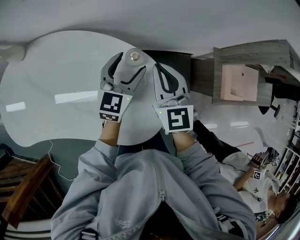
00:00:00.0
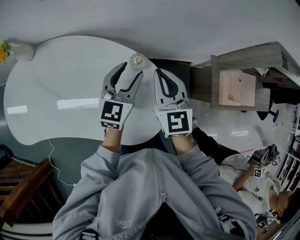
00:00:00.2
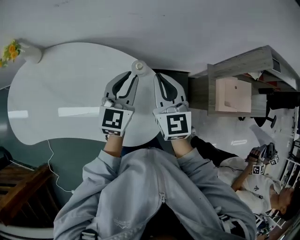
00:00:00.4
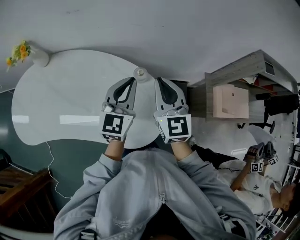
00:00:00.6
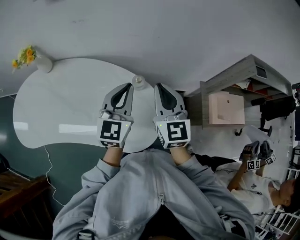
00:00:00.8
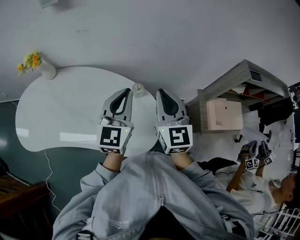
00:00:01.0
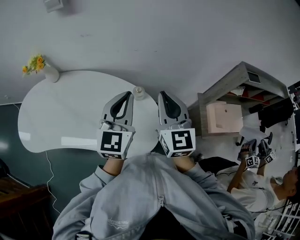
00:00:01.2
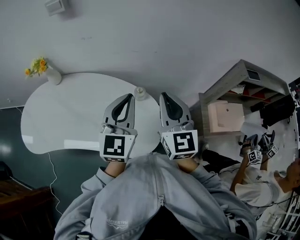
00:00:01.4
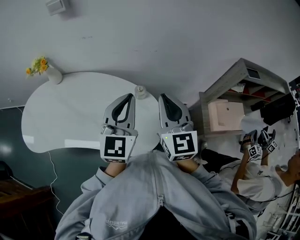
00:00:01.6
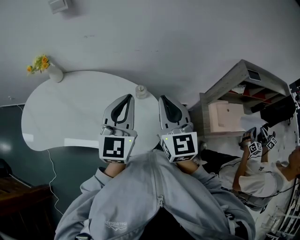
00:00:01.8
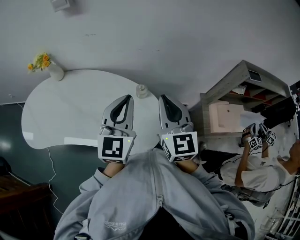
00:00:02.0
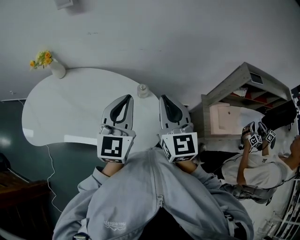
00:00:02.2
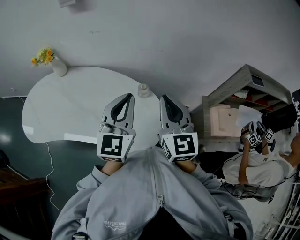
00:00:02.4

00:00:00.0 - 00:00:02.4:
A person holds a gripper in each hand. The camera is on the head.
00:00:00.0 - 00:00:01.2: The grippers both shift upward and backward by some 25 cm. The left gripper changes its angle by roughly 20 degrees, and closes.
00:00:01.2 - 00:00:02.4: There are only small adjustments of the grippers.

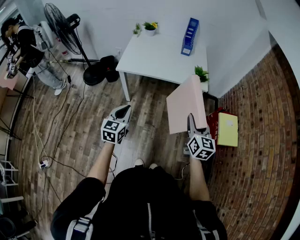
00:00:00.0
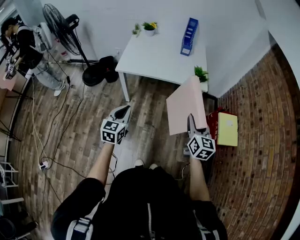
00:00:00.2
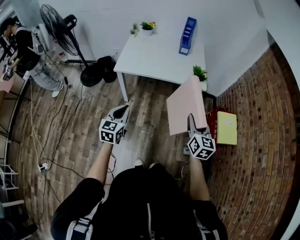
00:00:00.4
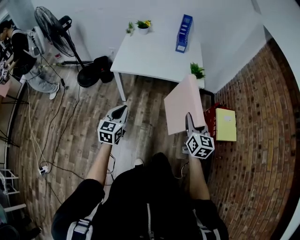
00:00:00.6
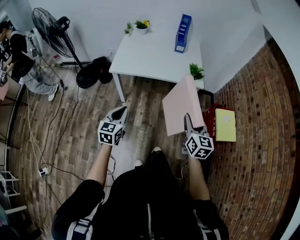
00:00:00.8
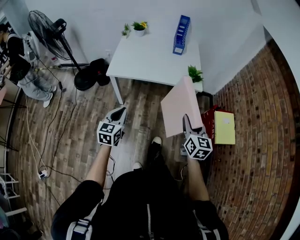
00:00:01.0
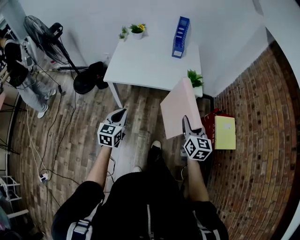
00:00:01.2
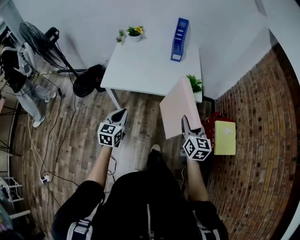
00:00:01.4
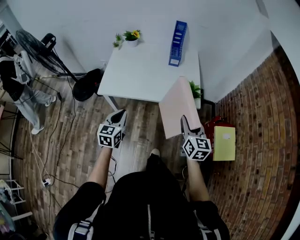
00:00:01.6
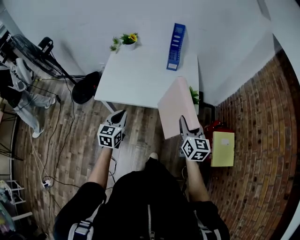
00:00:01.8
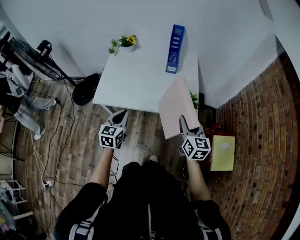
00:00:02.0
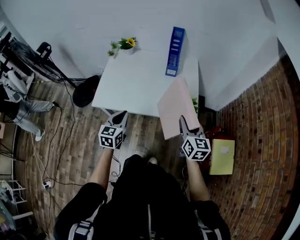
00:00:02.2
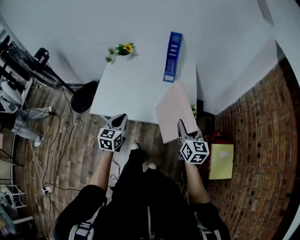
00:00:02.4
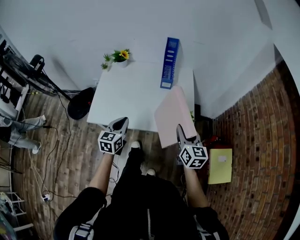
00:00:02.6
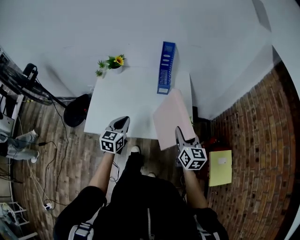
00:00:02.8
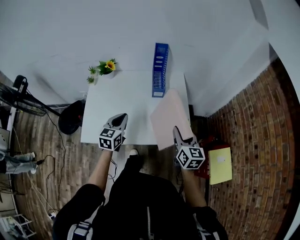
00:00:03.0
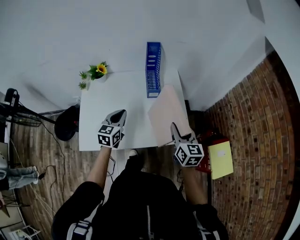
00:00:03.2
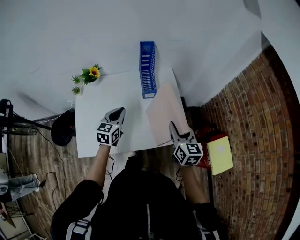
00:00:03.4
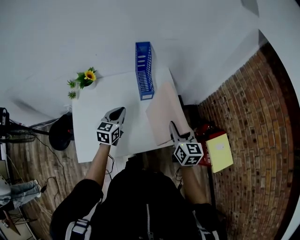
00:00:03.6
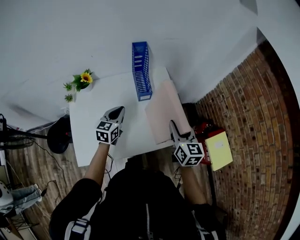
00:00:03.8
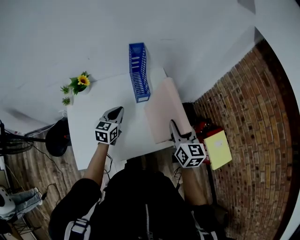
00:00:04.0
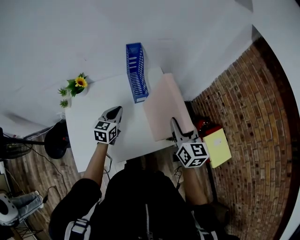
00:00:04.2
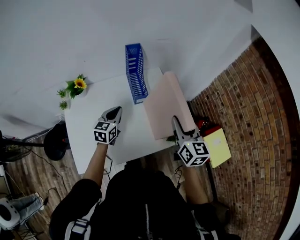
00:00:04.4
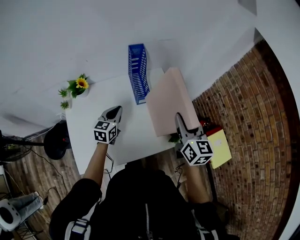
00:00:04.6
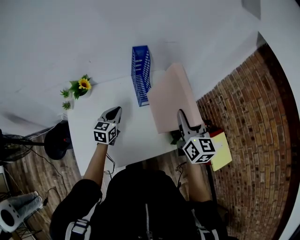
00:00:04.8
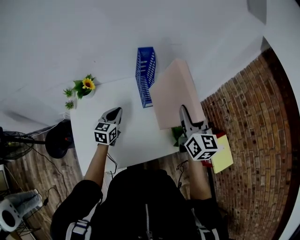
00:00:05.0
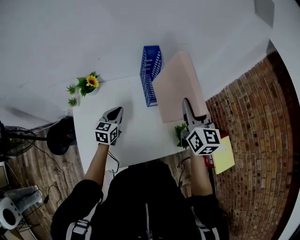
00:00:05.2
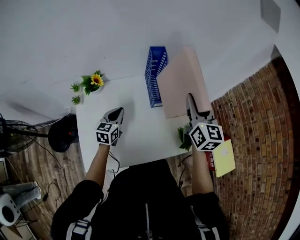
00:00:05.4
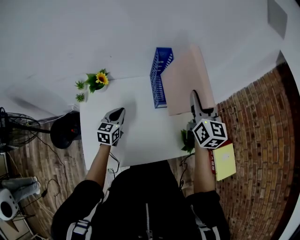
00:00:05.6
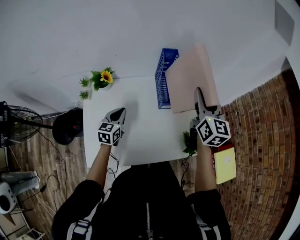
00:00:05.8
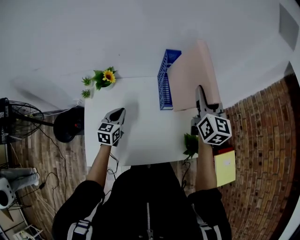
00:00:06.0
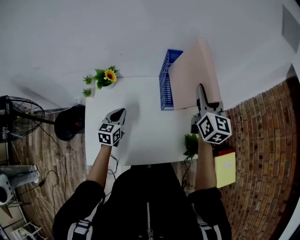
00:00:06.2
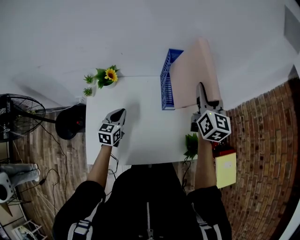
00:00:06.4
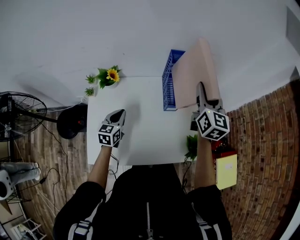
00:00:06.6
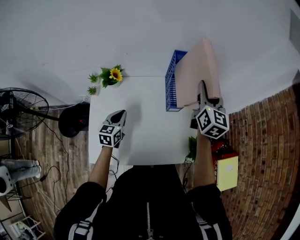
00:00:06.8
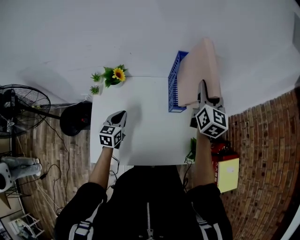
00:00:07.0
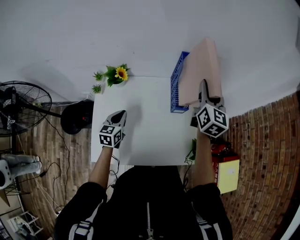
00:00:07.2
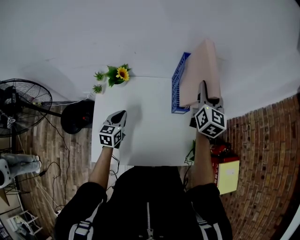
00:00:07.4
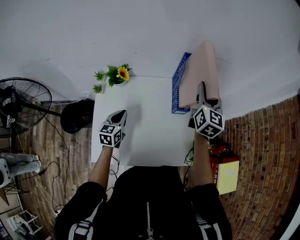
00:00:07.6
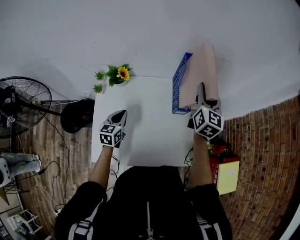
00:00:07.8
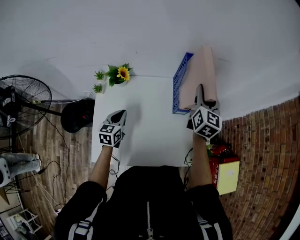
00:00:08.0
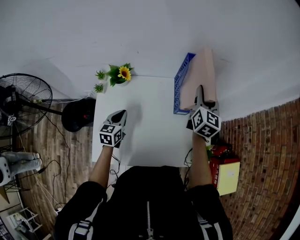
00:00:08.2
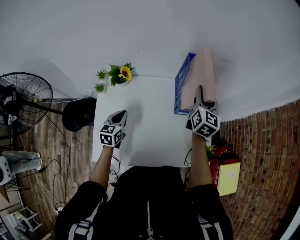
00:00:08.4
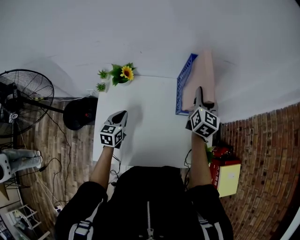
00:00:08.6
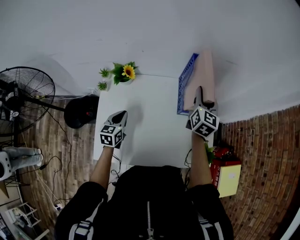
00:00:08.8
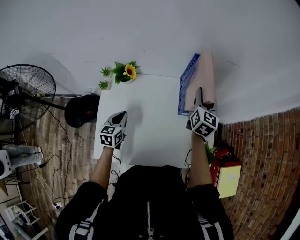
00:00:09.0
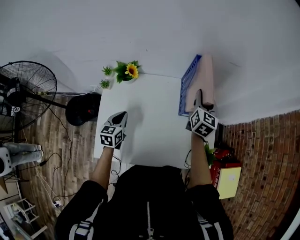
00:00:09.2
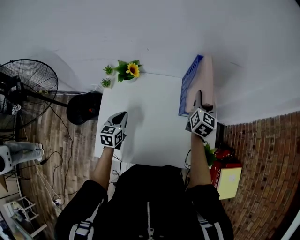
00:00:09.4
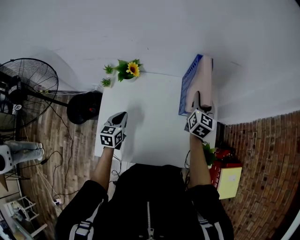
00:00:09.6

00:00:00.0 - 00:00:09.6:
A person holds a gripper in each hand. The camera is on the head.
00:00:00.0 - 00:00:01.6: Both grippers travel together forward, approximately 20 cm.
00:00:01.6 - 00:00:03.2: The two grippers go some 30 cm forward.
00:00:03.2 - 00:00:04.8: The right gripper heads upward and forward, covering about 15 cm, while the left gripper travels forward by approximately 10 cm.
00:00:04.8 - 00:00:06.4: The left gripper heads to the left, covering roughly 10 cm. Meanwhile the right gripper goes roughly 15 cm forward and to the left.
00:00:06.4 - 00:00:08.0: The left gripper shifts roughly 5 cm to the left. The right gripper travels downward by some 5 cm.
00:00:08.0 - 00:00:09.6: The right gripper moves downward, about 10 cm.

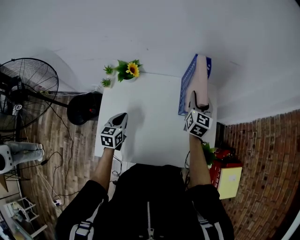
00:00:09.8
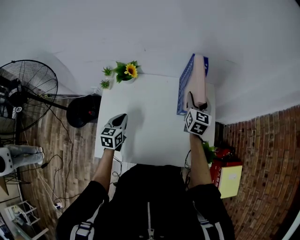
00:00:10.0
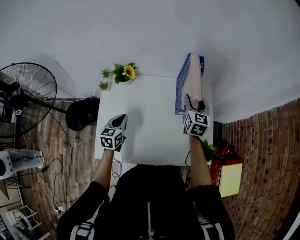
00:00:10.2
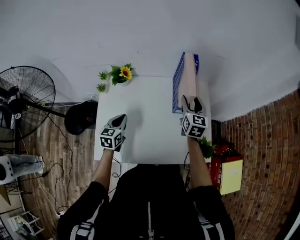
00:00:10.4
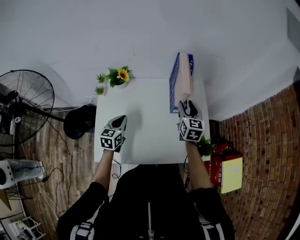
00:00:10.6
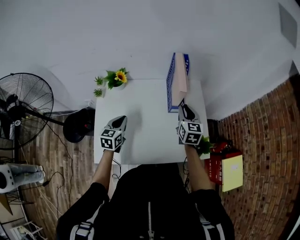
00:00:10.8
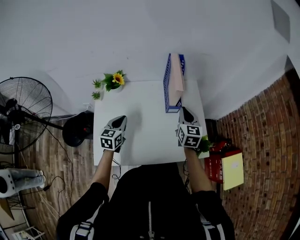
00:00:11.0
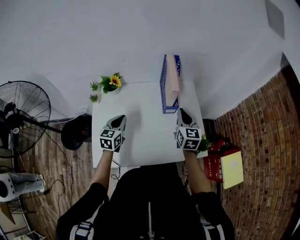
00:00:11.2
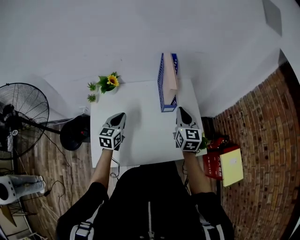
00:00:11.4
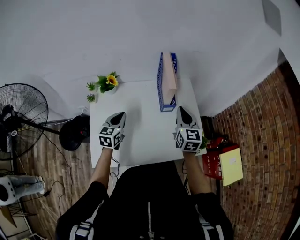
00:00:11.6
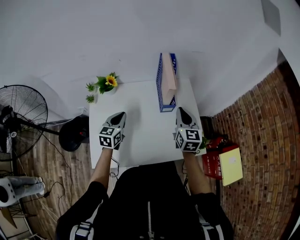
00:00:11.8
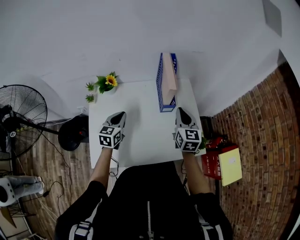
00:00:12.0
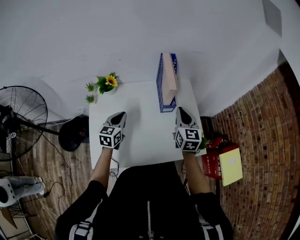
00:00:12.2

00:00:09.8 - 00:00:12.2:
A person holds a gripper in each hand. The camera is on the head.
00:00:09.8 - 00:00:11.0: The right gripper moves backward, about 10 cm, and closes. Meanwhile the left gripper travels to the right by approximately 5 cm.
00:00:11.0 - 00:00:12.2: The grippers stay close to where they were, moving slightly.

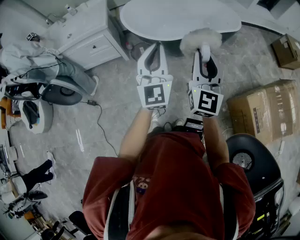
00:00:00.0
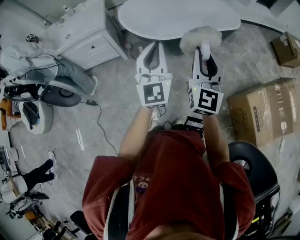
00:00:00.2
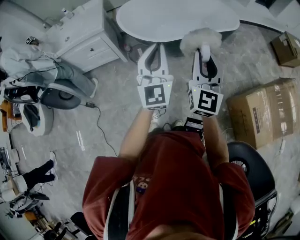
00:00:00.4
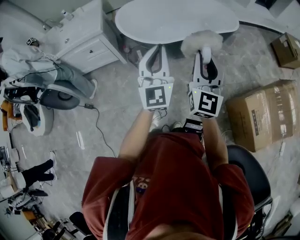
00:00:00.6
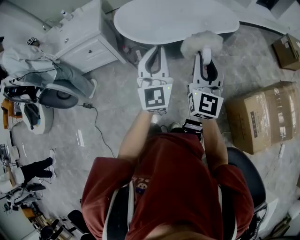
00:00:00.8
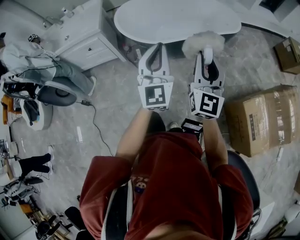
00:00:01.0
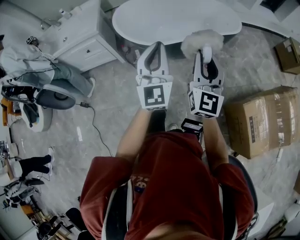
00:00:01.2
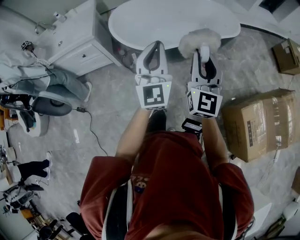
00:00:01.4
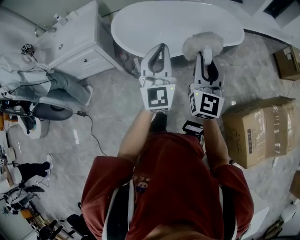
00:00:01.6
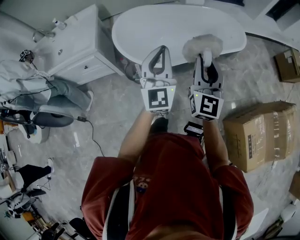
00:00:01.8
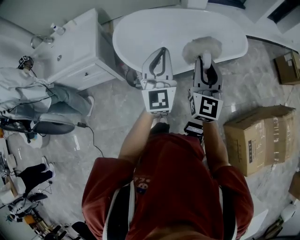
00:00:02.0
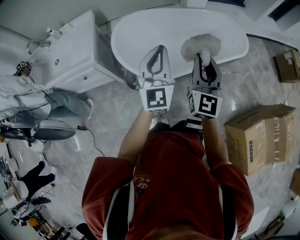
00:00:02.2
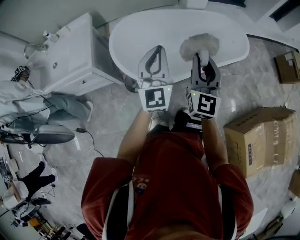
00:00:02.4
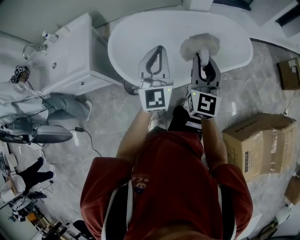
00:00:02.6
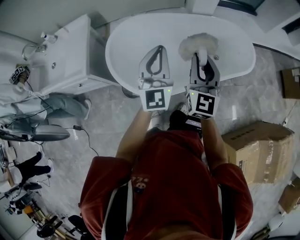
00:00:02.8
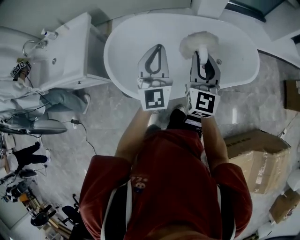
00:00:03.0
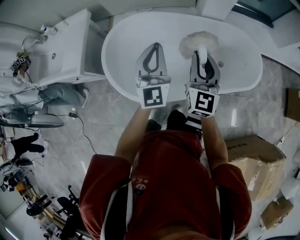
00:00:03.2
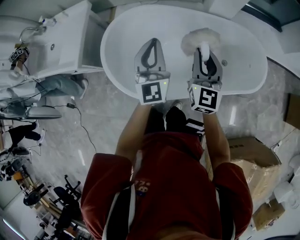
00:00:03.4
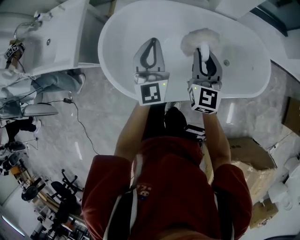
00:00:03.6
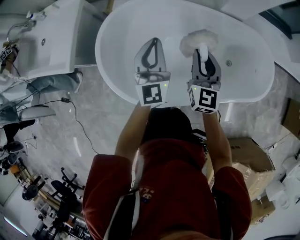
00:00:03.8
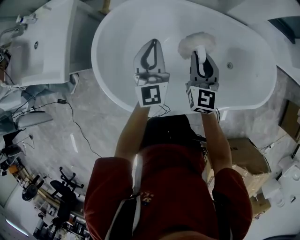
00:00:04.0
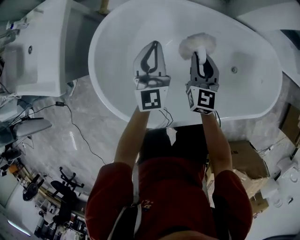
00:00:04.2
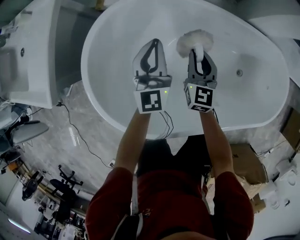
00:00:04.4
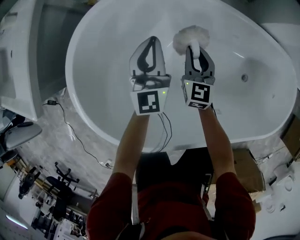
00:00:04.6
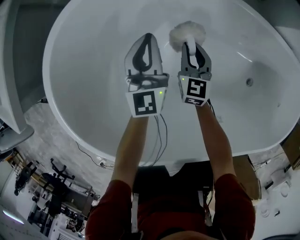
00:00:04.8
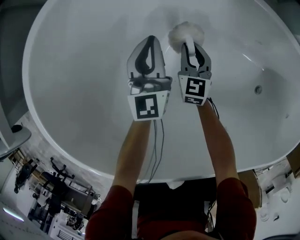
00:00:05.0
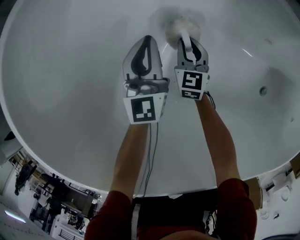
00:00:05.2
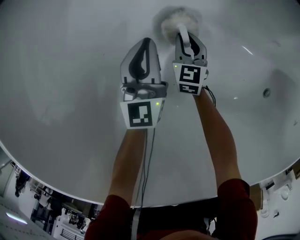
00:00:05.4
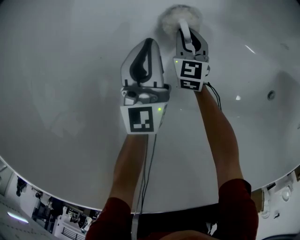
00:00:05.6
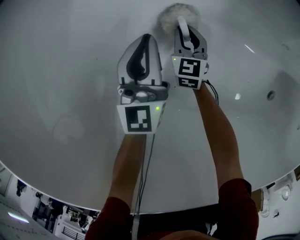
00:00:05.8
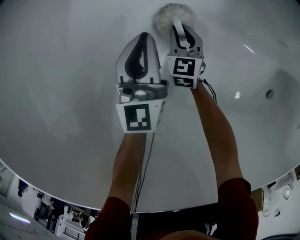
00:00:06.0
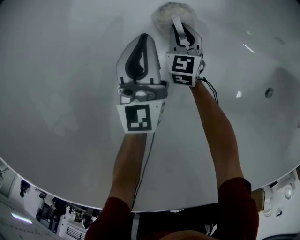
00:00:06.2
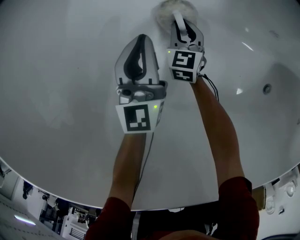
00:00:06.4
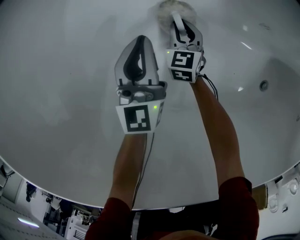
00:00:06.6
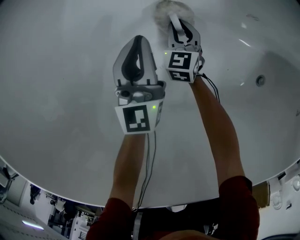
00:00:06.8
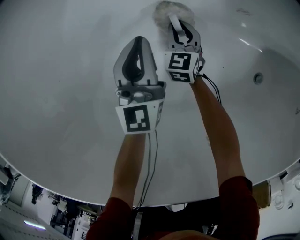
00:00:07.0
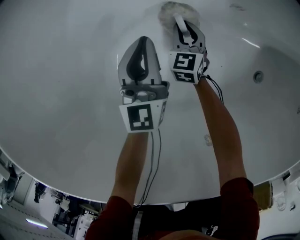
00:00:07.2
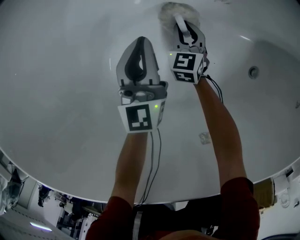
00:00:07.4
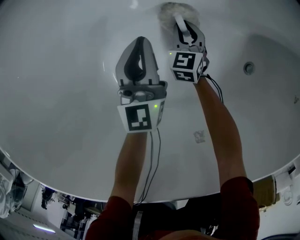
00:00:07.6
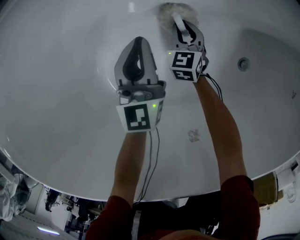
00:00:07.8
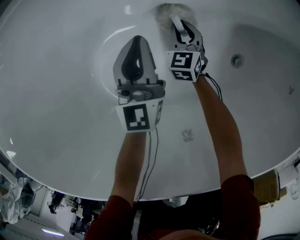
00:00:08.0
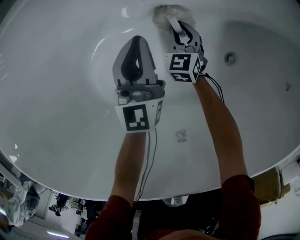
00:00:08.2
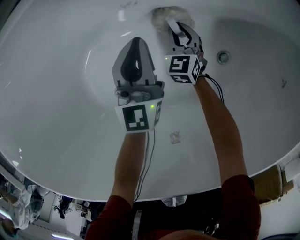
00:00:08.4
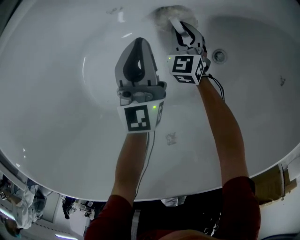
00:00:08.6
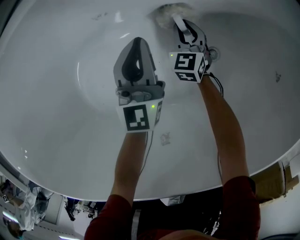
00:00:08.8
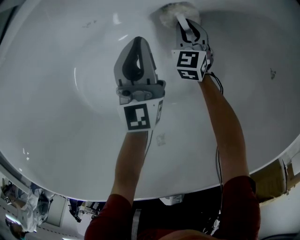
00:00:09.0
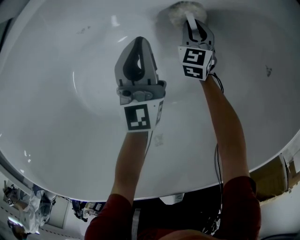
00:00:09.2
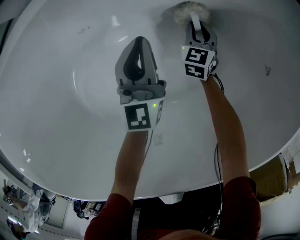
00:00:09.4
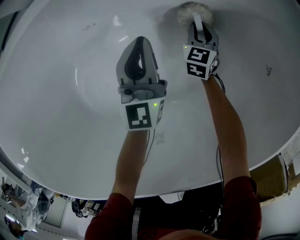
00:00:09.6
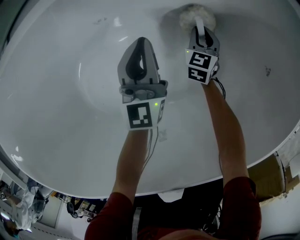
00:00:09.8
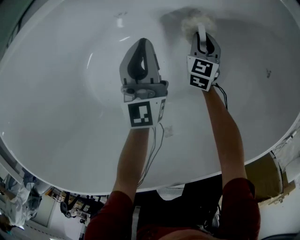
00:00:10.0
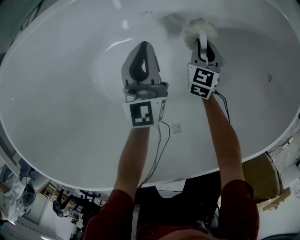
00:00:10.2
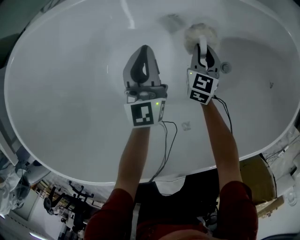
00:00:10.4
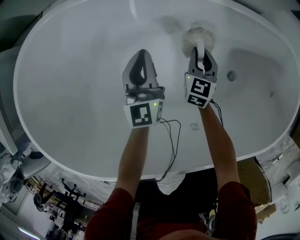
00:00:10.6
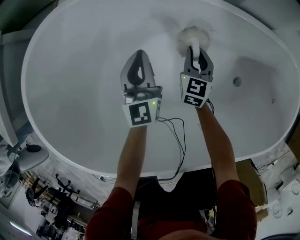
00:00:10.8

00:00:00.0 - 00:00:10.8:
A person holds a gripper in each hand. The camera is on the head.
00:00:00.0 - 00:00:01.6: Both grippers move forward, some 20 cm.
00:00:01.6 - 00:00:03.0: The grippers both shift forward by approximately 40 cm.
00:00:03.0 - 00:00:04.6: The two grippers go approximately 50 cm downward and forward. The right gripper changes its angle by some 30 degrees. Meanwhile the left gripper rotates some 20 degrees.
00:00:04.6 - 00:00:06.2: The two grippers go approximately 30 cm downward.
00:00:06.2 - 00:00:07.8: The two grippers go roughly 30 cm to the right.
00:00:07.8 - 00:00:09.2: Both grippers travel together to the right, roughly 25 cm.
00:00:09.2 - 00:00:10.8: The pair of grippers is taken to the left, about 40 cm. Both grippers travel together upward, some 20 cm. The left gripper rotates approximately 30 degrees.
